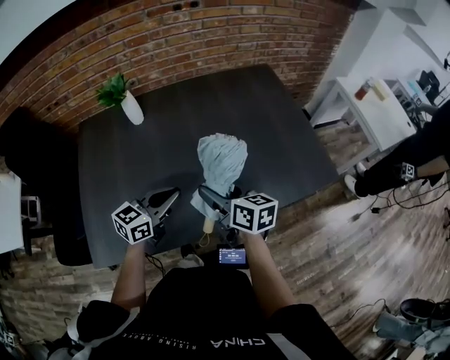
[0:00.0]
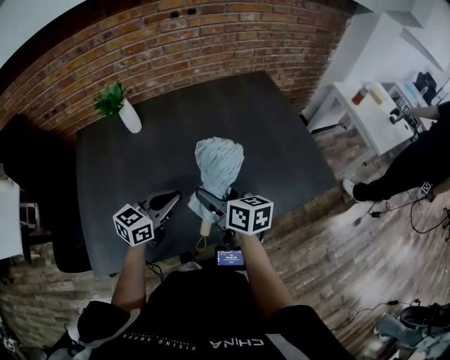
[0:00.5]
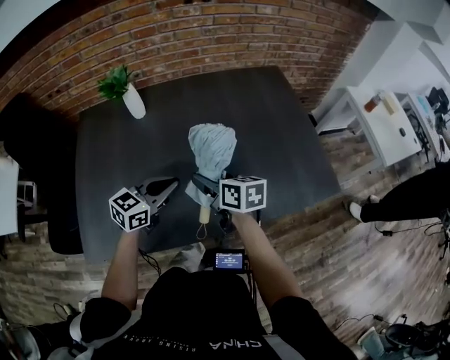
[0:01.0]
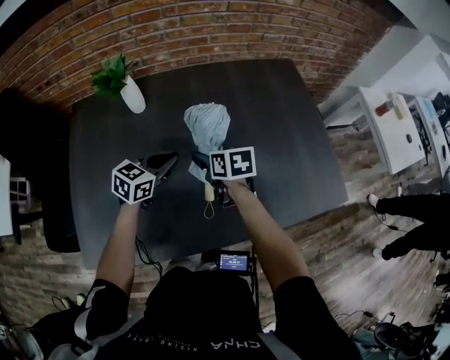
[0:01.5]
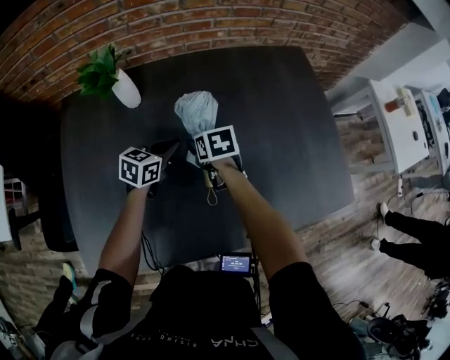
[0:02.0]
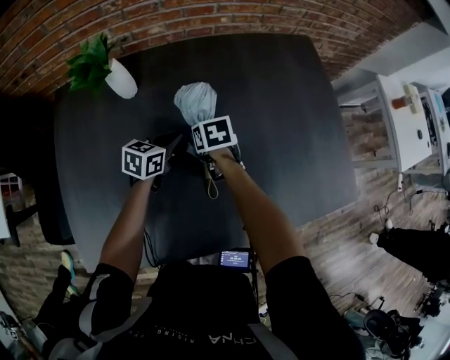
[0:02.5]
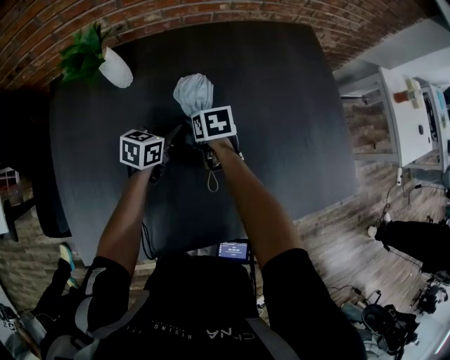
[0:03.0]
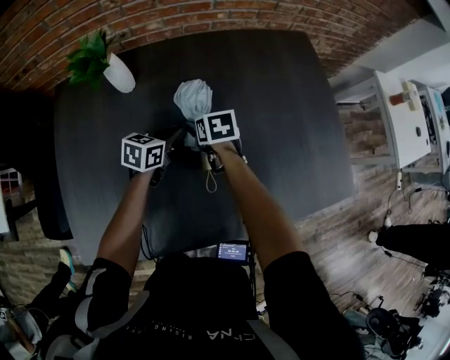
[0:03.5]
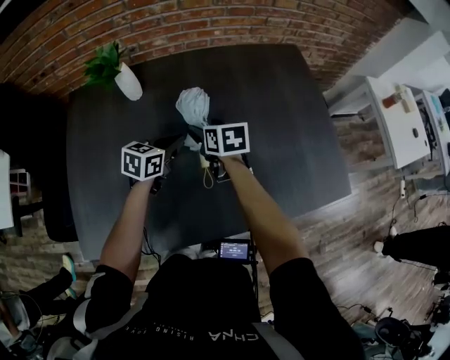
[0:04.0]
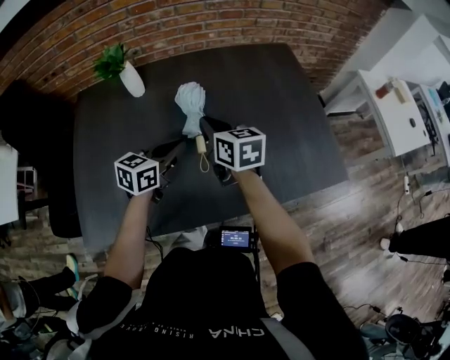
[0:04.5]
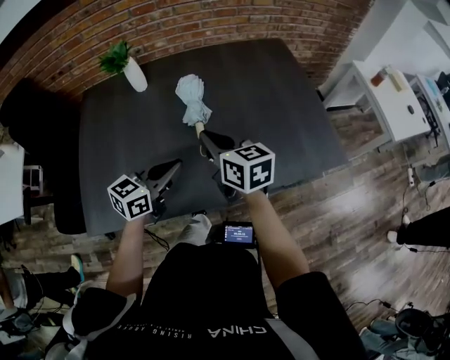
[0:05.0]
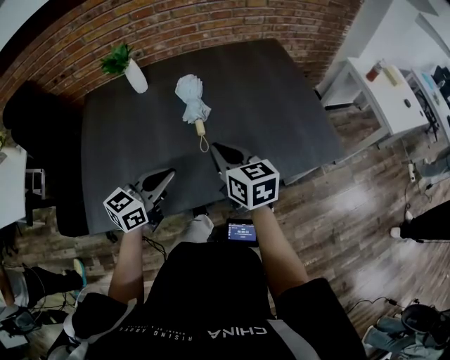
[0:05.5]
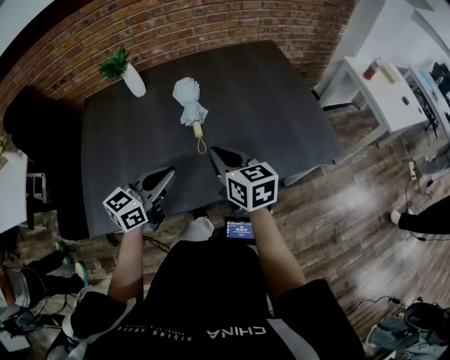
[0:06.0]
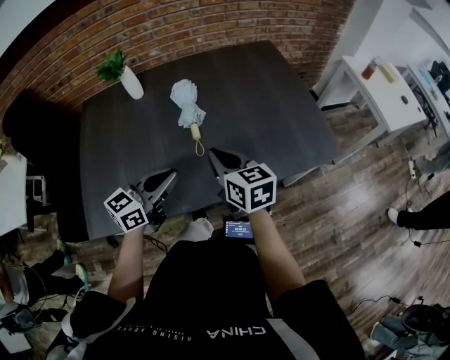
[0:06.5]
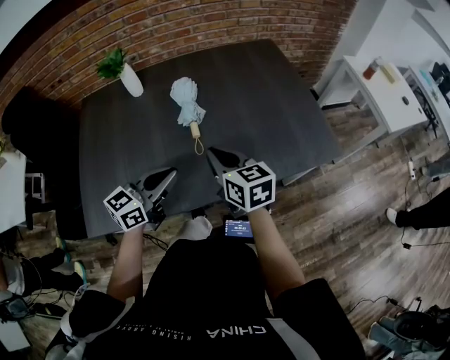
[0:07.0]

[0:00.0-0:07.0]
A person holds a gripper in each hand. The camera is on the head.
0:00.0 to 0:02.0: Both grippers move forward and downward, about 30 cm. The left gripper changes its angle by some 20 degrees. Meanwhile the right gripper points its fingers about 40 degrees further downward.
0:02.0 to 0:03.5: There are only small adjustments of the grippers.
0:03.5 to 0:05.0: Both grippers travel together backward and upward, approximately 30 cm. The left gripper swivels about 20 degrees, while the right gripper angles its fingers upward, by approximately 40 degrees, and closes up.
0:05.0 to 0:07.0: The left gripper shifts by approximately 5 cm. The right gripper goes approximately 5 cm backward.

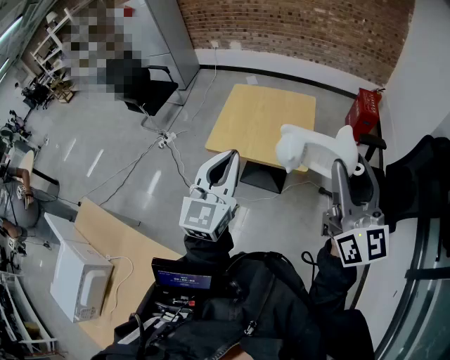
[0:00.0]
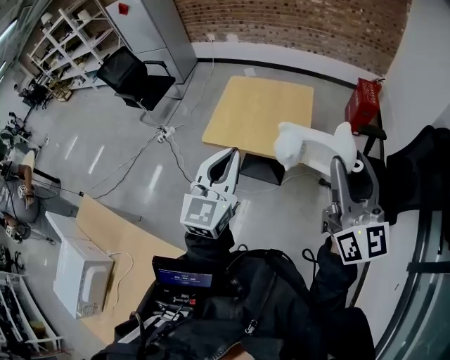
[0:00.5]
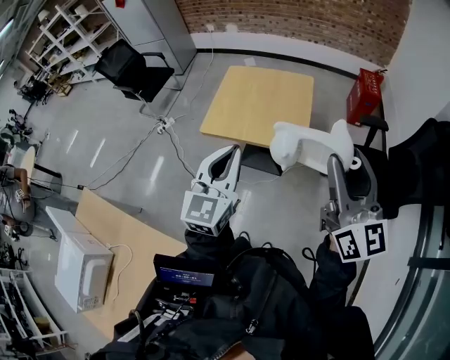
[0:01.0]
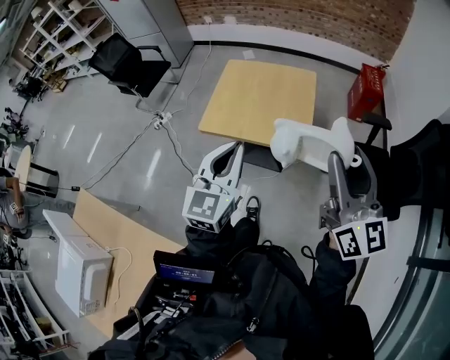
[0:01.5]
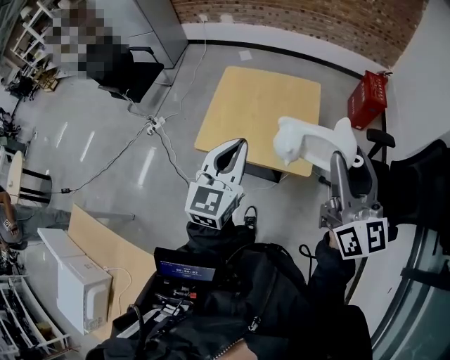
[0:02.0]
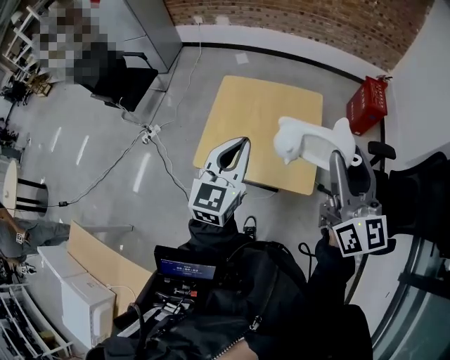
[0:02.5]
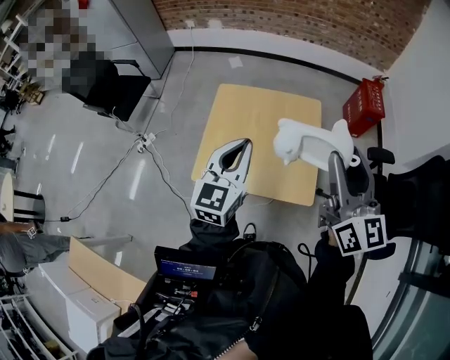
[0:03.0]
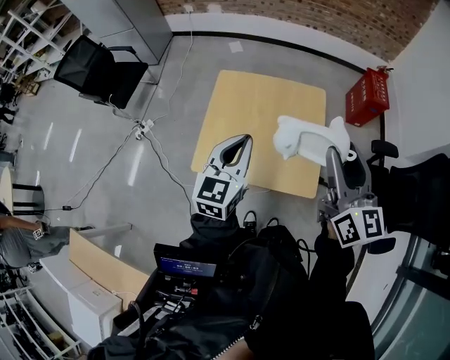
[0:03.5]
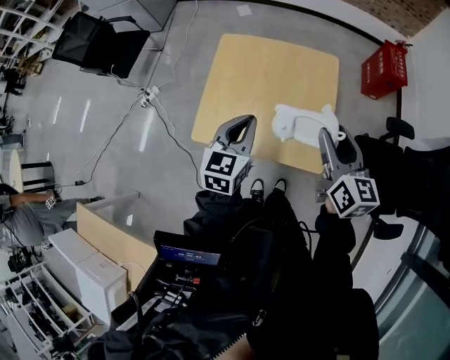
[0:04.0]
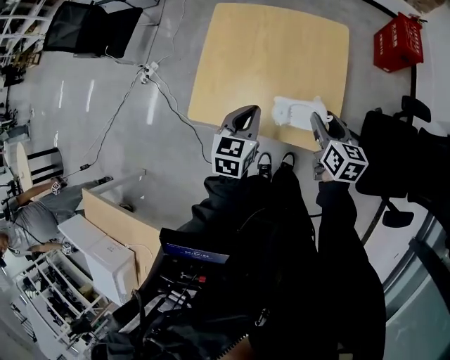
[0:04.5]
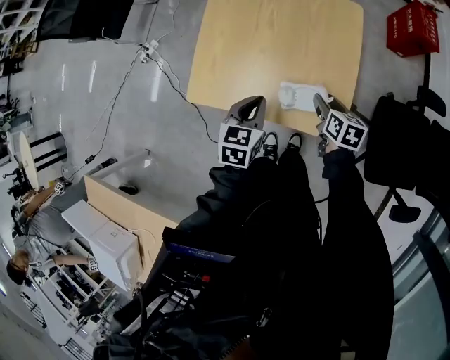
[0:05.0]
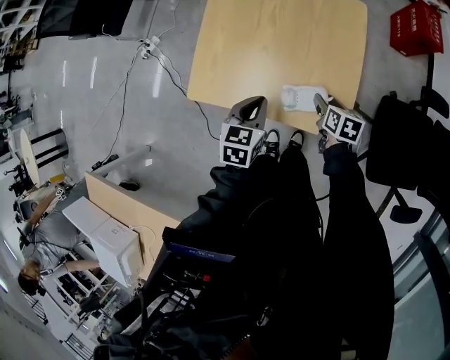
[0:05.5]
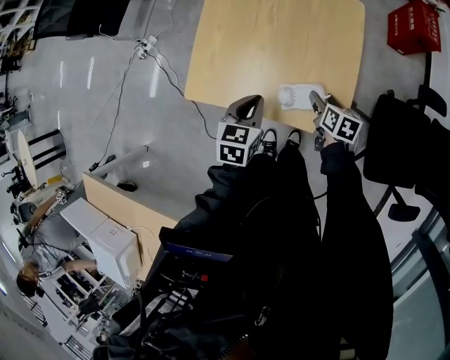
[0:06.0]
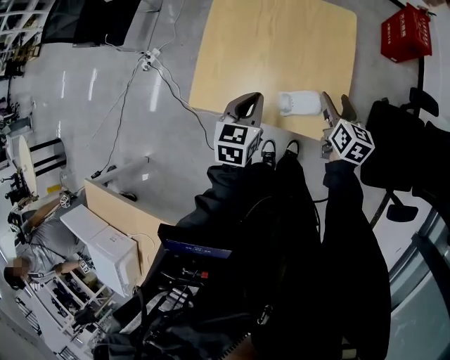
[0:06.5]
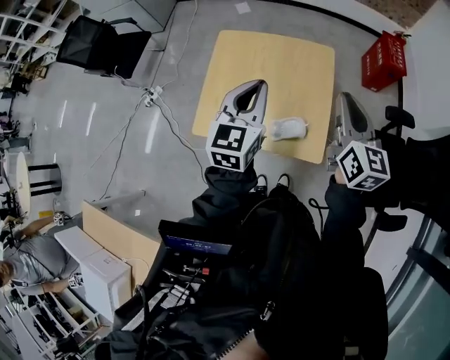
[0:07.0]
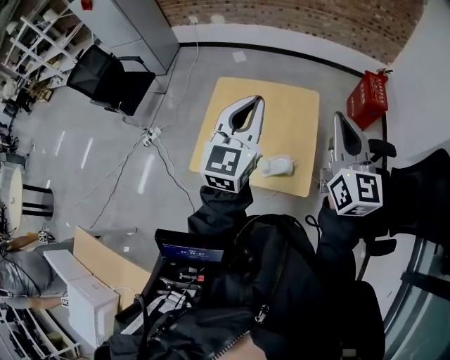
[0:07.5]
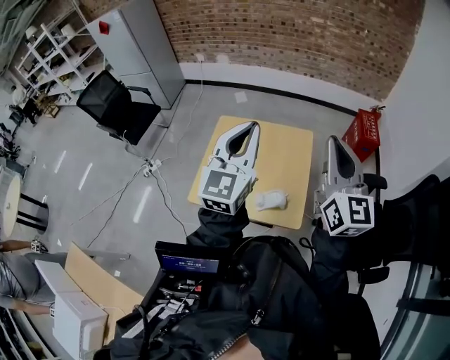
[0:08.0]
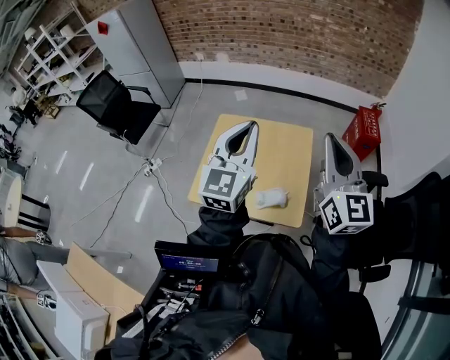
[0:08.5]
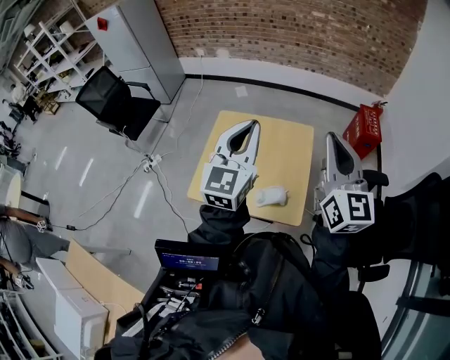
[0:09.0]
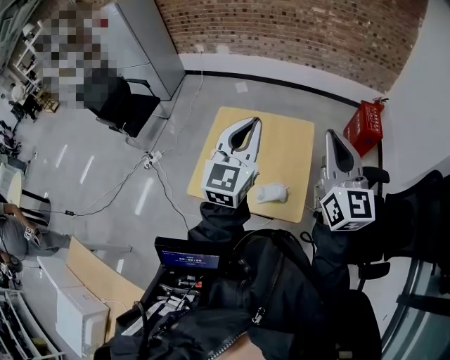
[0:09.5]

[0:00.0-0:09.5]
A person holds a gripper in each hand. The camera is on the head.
0:00.0 to 0:02.0: The left gripper is displaced forward and downward by roughly 20 cm. Meanwhile the right gripper moves forward, about 15 cm.
0:02.0 to 0:04.0: The two grippers go some 25 cm forward and downward. The right gripper turns by roughly 30 degrees.
0:04.0 to 0:05.5: The left gripper shifts some 20 cm downward, and rotates approximately 20 degrees, while the right gripper heads downward, covering roughly 35 cm, and tips its fingers downward by about 40 degrees.
0:05.5 to 0:07.5: The two grippers go roughly 40 cm upward. The right gripper tips its fingers upward by about 60 degrees, and closes its fingers. Meanwhile the left gripper points its fingers some 40 degrees further upward.
0:07.5 to 0:09.5: The grippers make only small movements.

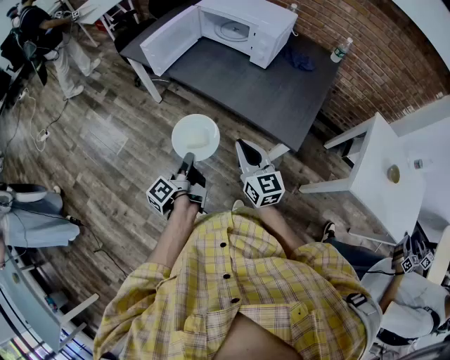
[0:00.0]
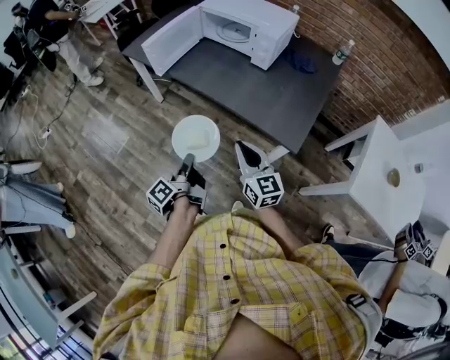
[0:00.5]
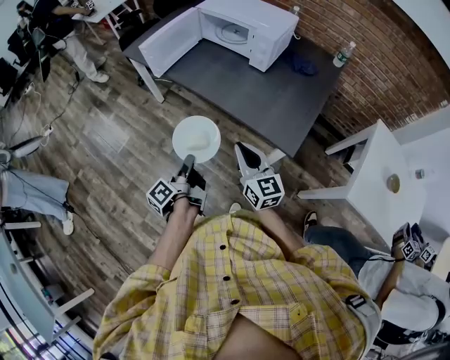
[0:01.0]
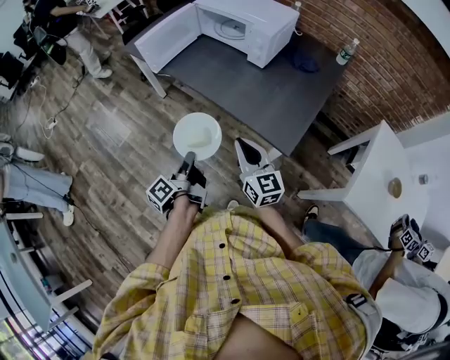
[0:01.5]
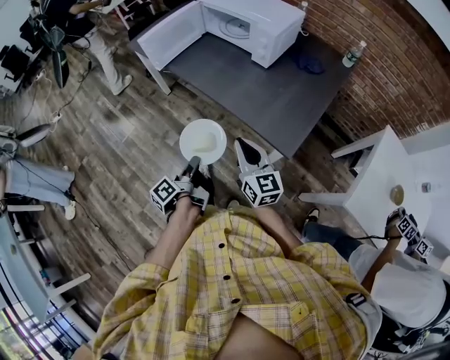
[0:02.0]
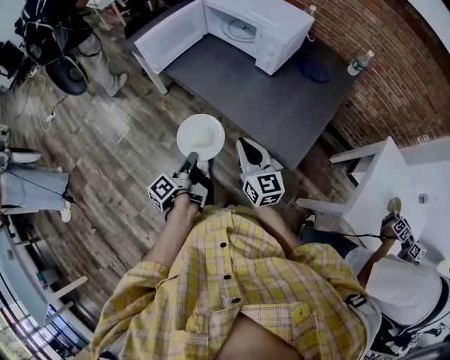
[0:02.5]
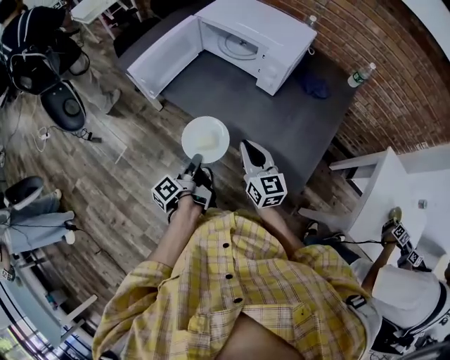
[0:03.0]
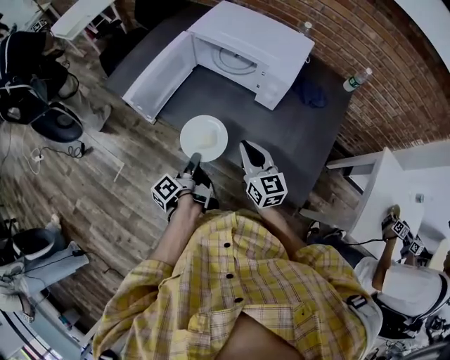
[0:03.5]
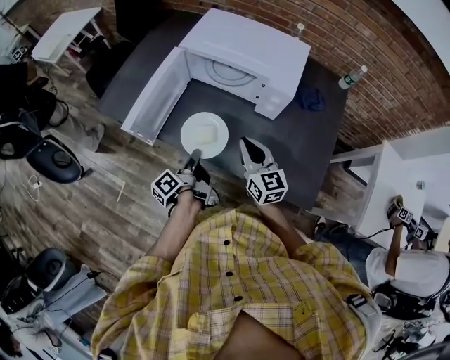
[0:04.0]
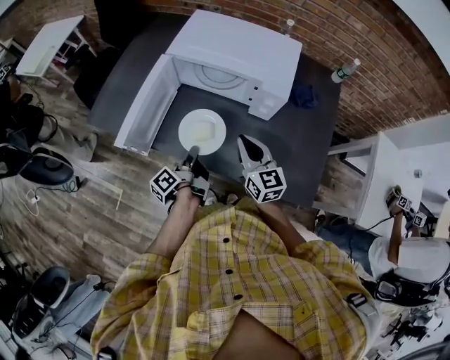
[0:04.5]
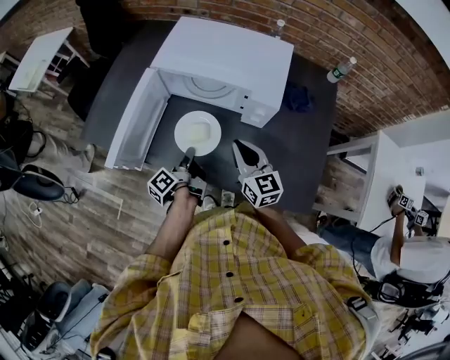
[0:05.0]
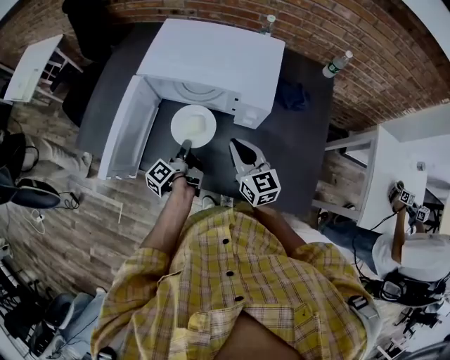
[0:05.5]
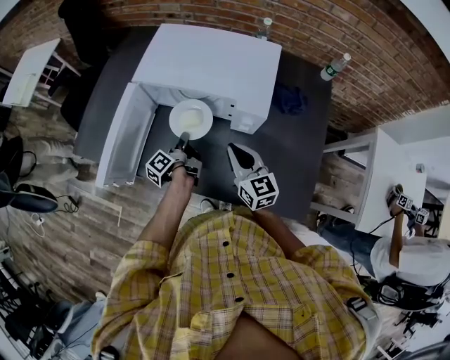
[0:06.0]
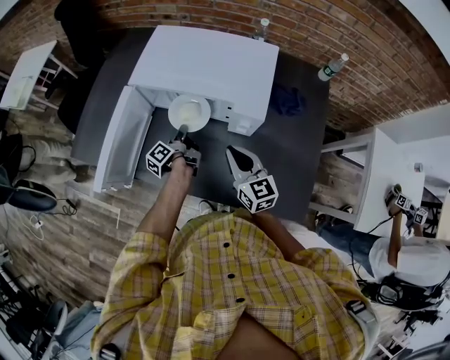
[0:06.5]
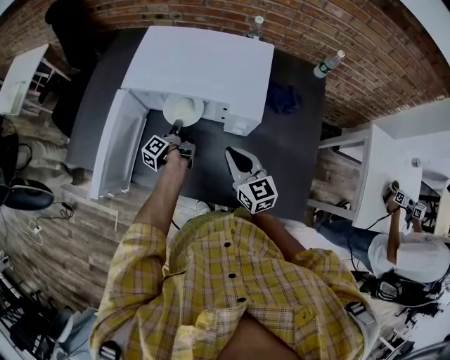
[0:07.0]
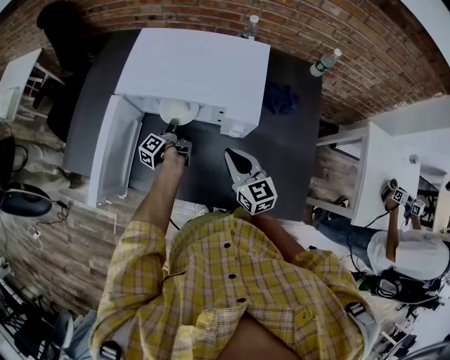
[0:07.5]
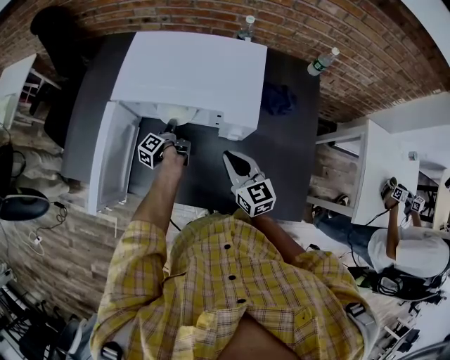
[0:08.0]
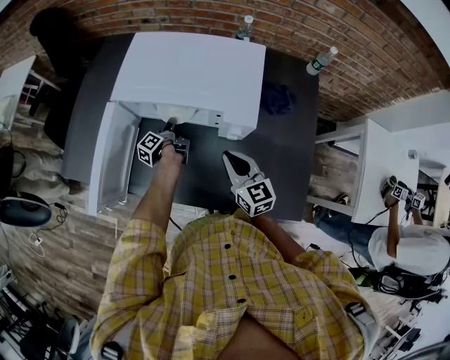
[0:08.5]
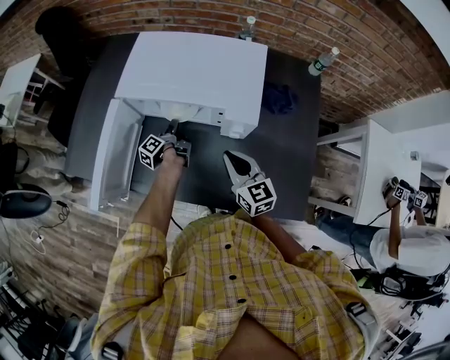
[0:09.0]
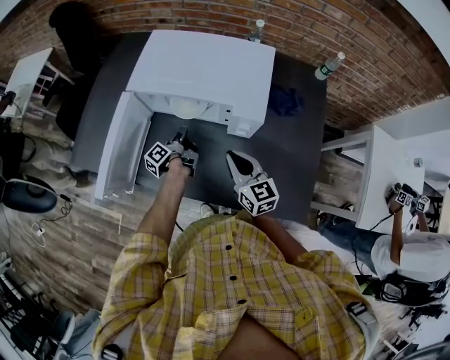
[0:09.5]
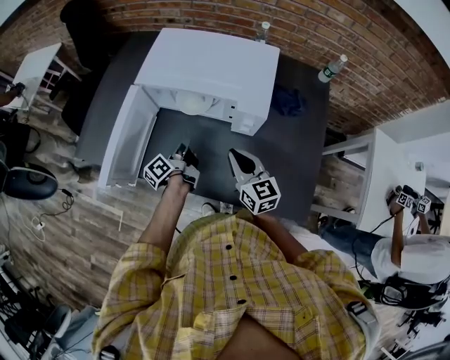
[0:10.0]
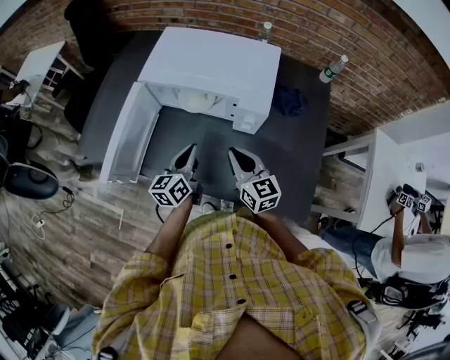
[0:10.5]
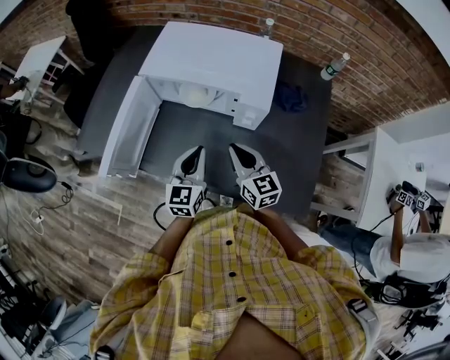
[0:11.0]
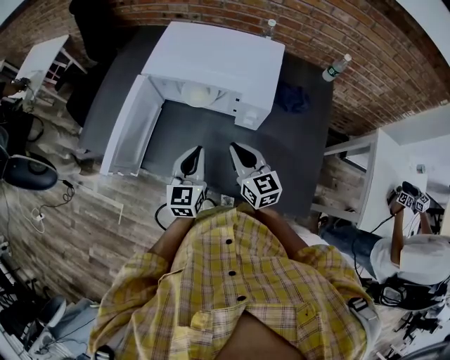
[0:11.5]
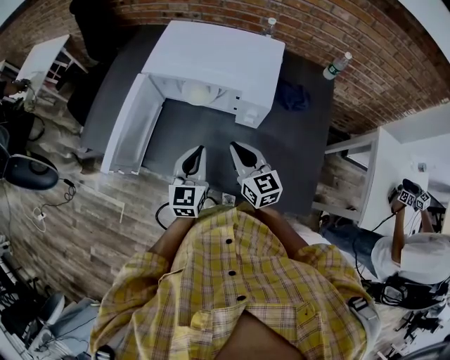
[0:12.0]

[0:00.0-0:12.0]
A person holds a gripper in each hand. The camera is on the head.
0:00.0 to 0:02.0: The right gripper moves roughly 10 cm.
0:02.0 to 0:04.0: The right gripper shifts by some 35 cm.
0:04.0 to 0:06.0: The right gripper shifts by roughly 10 cm.
0:08.0 to 0:10.0: The right gripper ends up some 5 cm from where it was.
